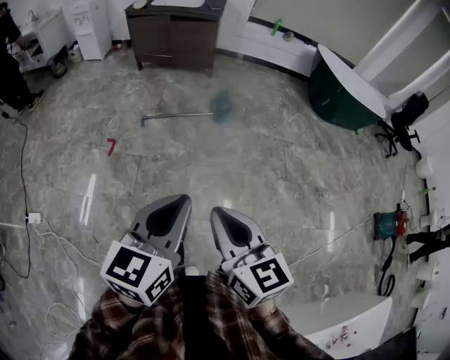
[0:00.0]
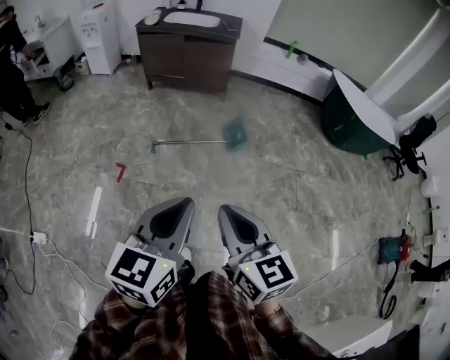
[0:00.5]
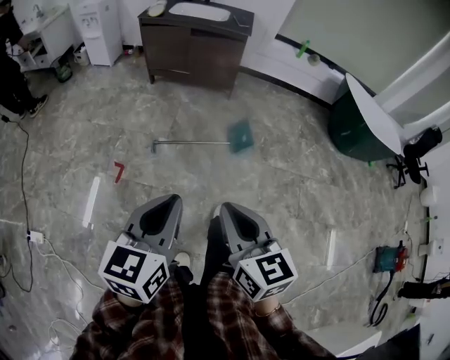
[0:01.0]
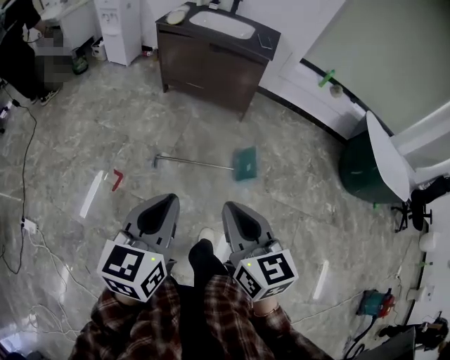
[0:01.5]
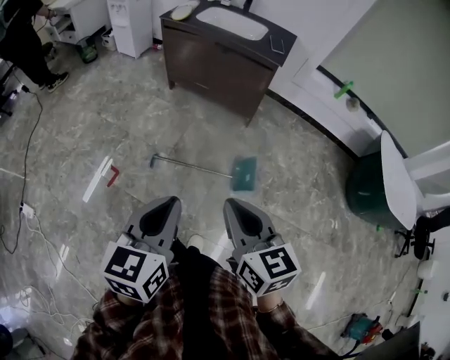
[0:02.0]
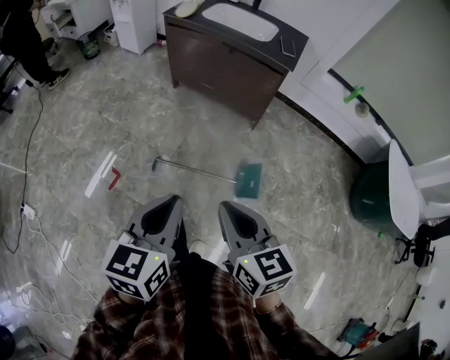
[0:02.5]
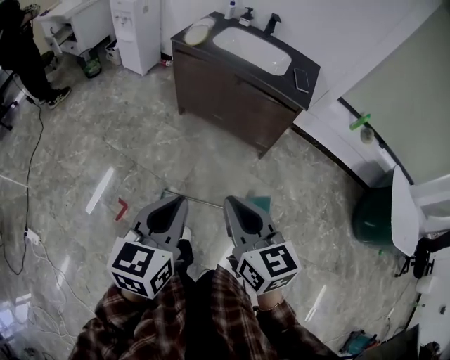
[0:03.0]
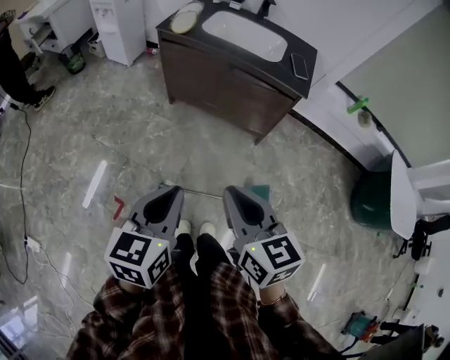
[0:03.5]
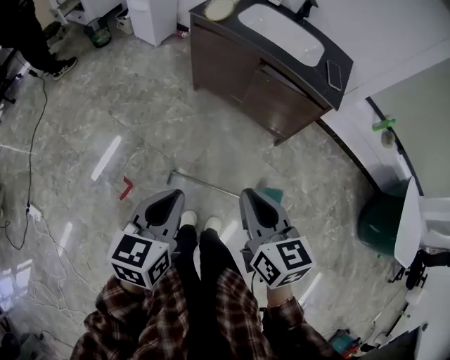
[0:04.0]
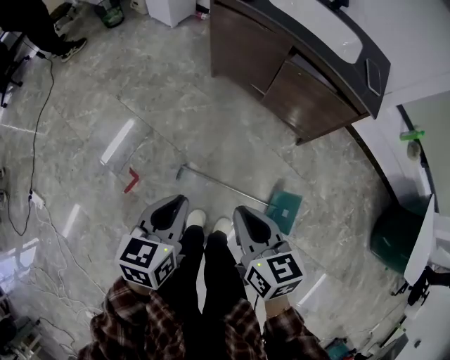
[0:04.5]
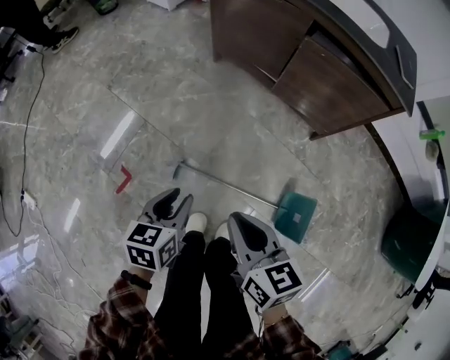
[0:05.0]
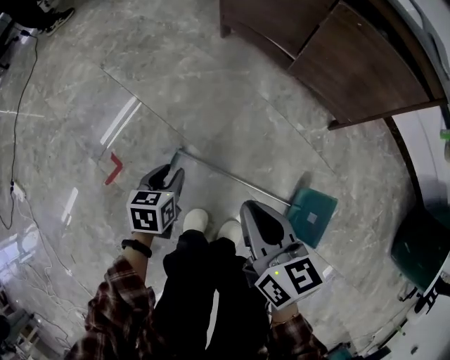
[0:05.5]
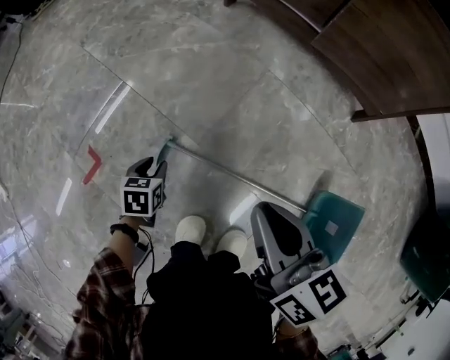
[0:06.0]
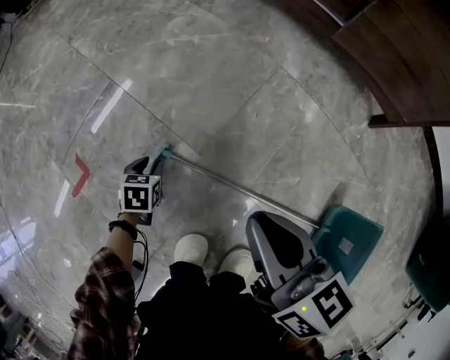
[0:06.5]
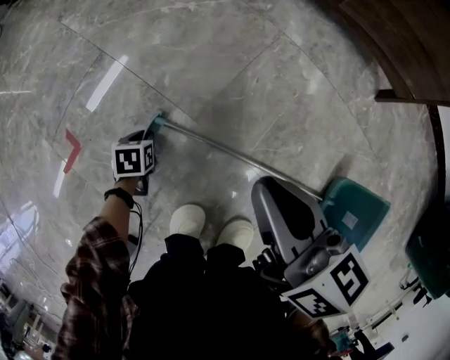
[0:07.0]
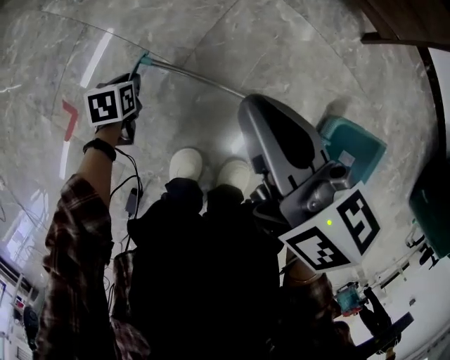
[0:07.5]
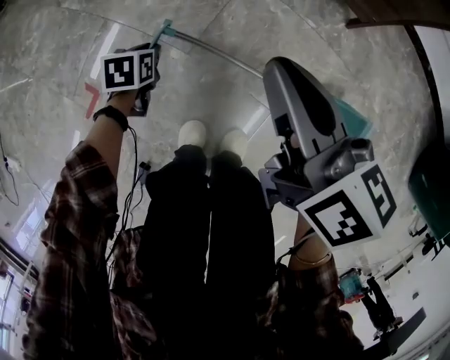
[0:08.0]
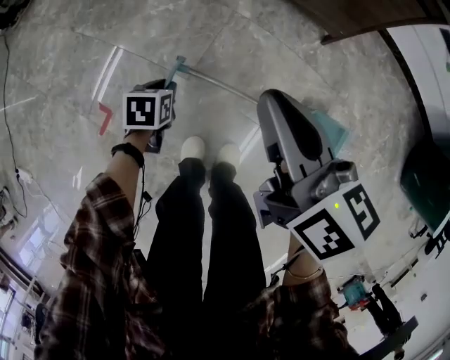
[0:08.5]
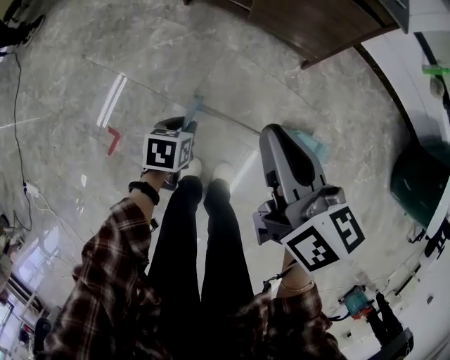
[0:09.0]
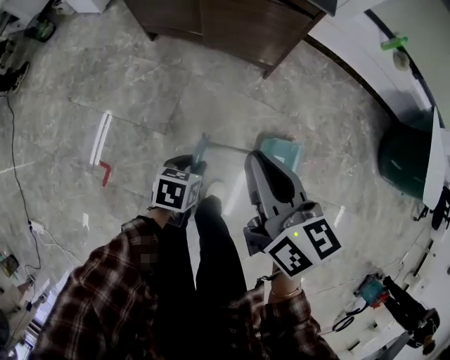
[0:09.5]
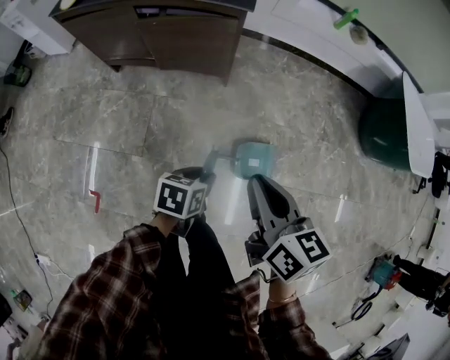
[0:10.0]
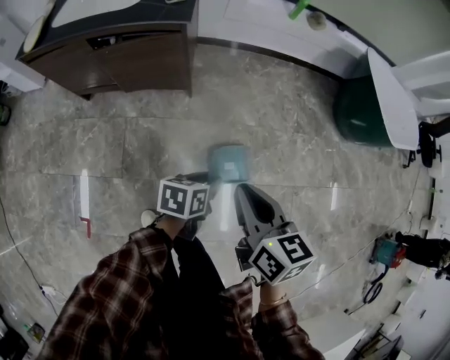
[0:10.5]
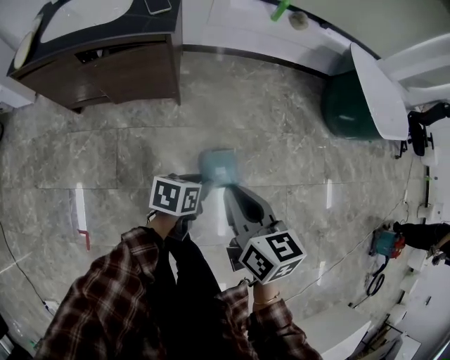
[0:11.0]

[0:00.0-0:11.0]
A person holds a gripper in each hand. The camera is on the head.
0:00.0 to 0:02.0: The pair of grippers is taken forward, roughly 60 cm. The left gripper rotates about 30 degrees.
0:02.0 to 0:03.5: The grippers both shift forward by roughly 30 cm.
0:03.5 to 0:05.5: Both grippers move downward, approximately 50 cm. The right gripper rotates about 20 degrees. The left gripper swivels approximately 30 degrees, and opens up.
0:05.5 to 0:07.5: The right gripper travels downward by about 15 cm, while the left gripper heads downward, covering roughly 30 cm.
0:07.5 to 0:09.0: The left gripper shifts about 40 cm upward and to the right. Meanwhile the right gripper goes some 40 cm upward.
0:09.0 to 0:11.0: The left gripper ends up approximately 50 cm from where it was, and rotates approximately 40 degrees; the right gripper shifts by roughly 35 cm, and turns by some 30 degrees.

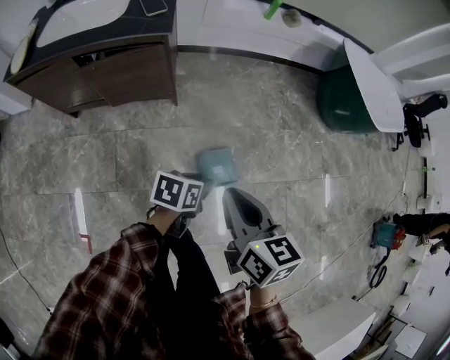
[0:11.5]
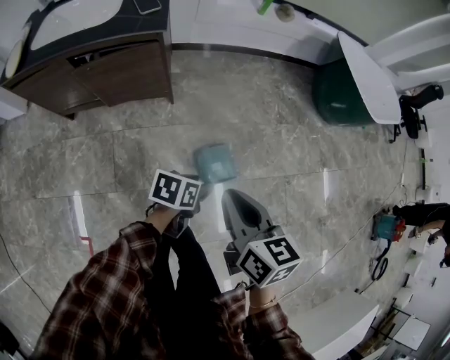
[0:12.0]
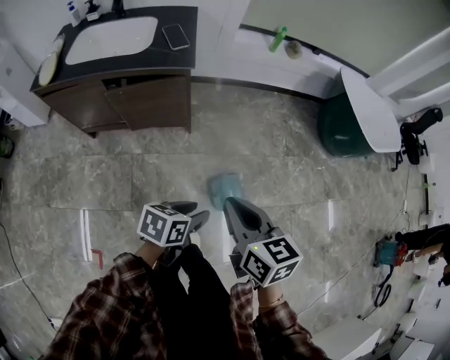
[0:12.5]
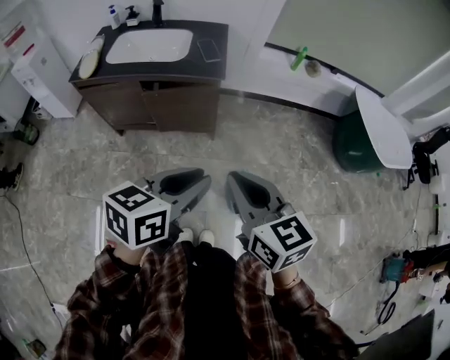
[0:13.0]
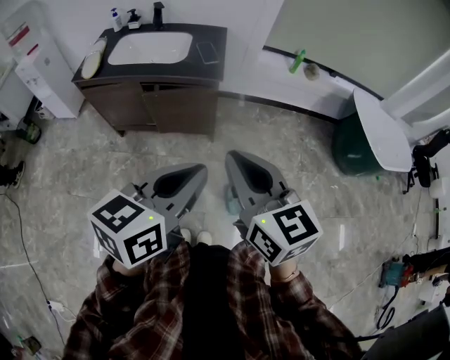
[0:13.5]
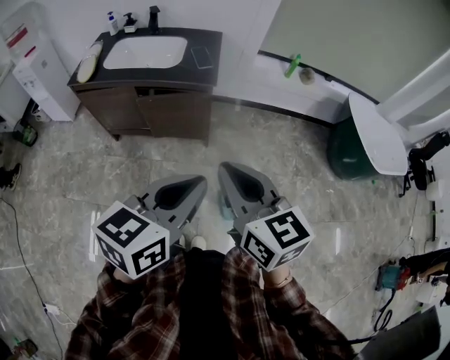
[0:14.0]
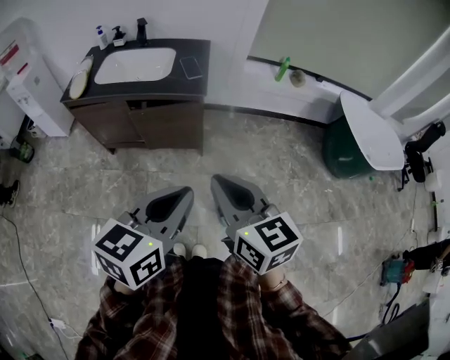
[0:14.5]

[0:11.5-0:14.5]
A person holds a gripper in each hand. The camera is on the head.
0:11.5 to 0:13.0: The right gripper is displaced upward and to the left by some 20 cm, and changes its angle by roughly 30 degrees. Meanwhile the left gripper heads upward and to the left, covering some 35 cm, and changes its angle by about 30 degrees.
0:13.0 to 0:14.5: The left gripper travels upward by approximately 5 cm.

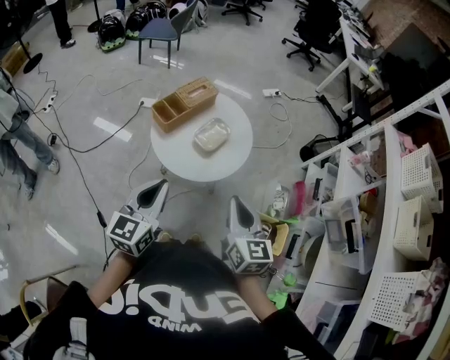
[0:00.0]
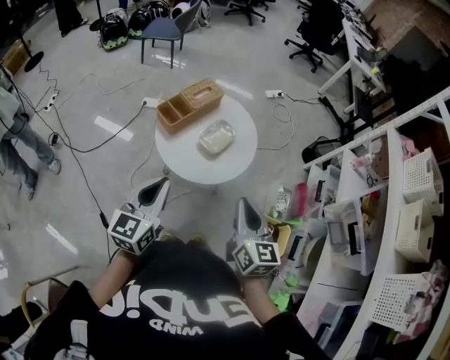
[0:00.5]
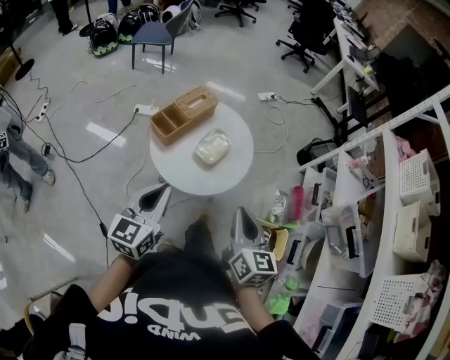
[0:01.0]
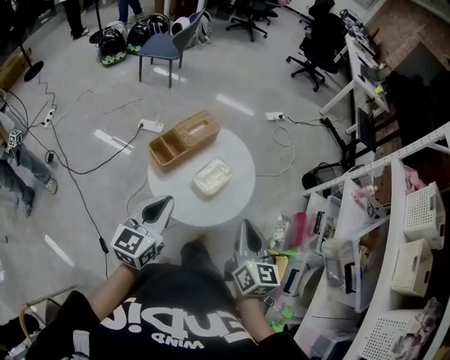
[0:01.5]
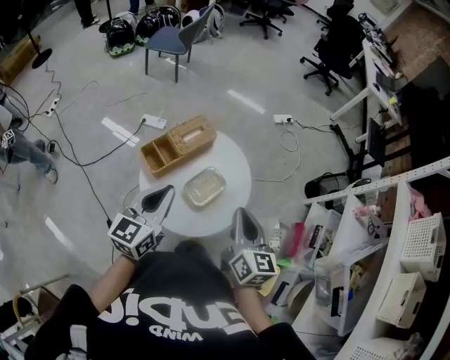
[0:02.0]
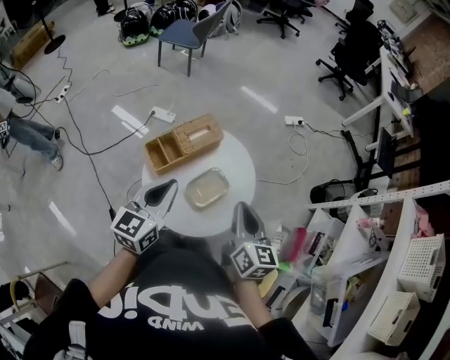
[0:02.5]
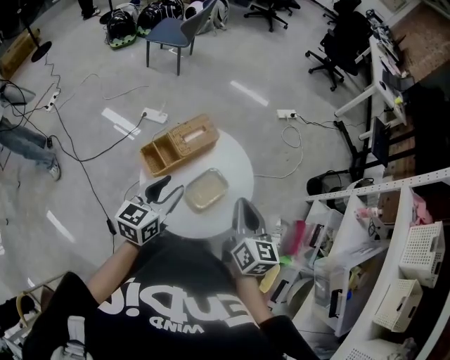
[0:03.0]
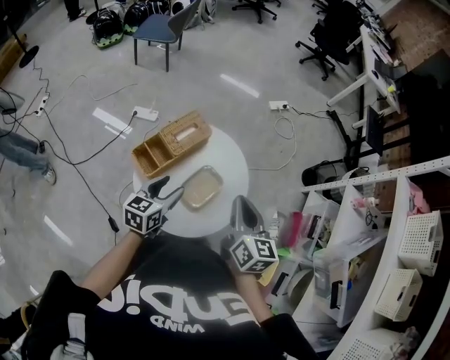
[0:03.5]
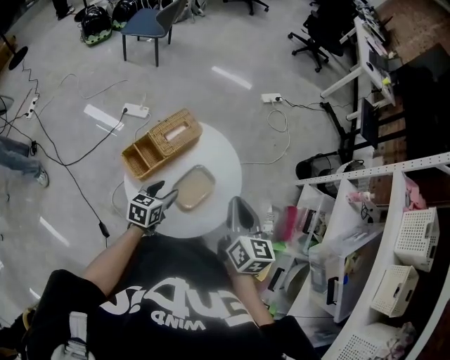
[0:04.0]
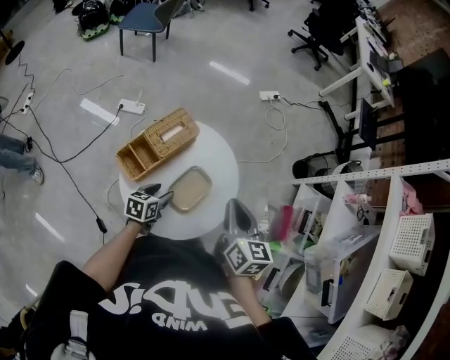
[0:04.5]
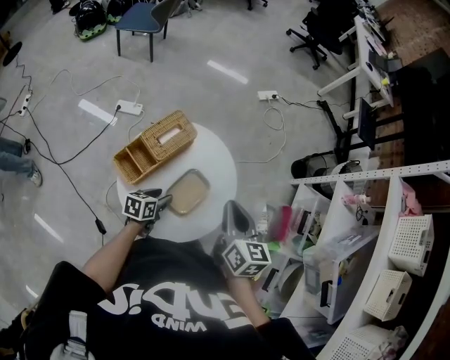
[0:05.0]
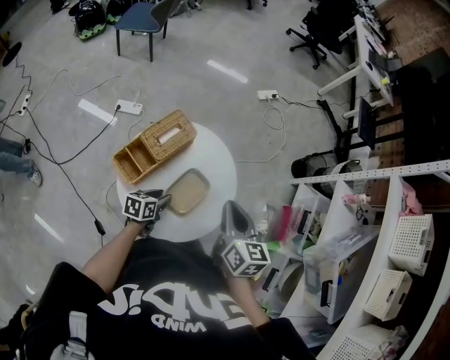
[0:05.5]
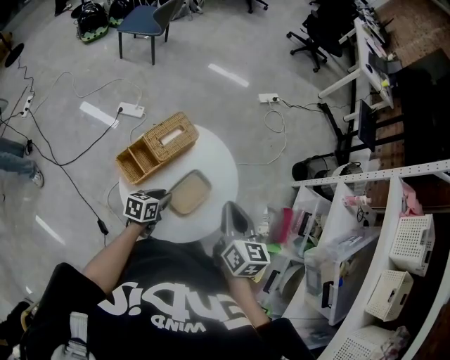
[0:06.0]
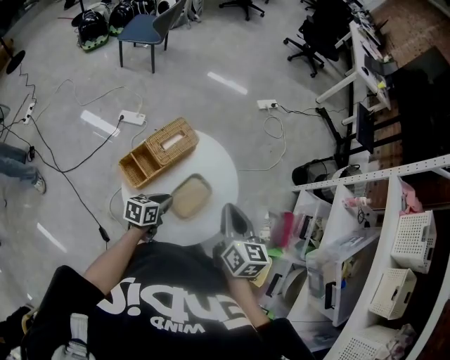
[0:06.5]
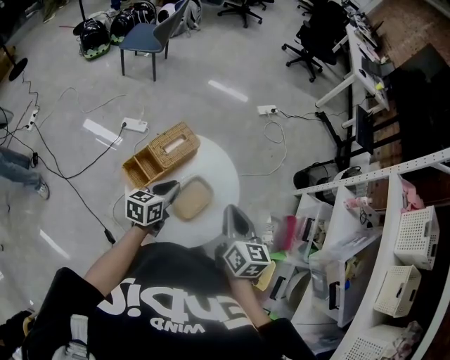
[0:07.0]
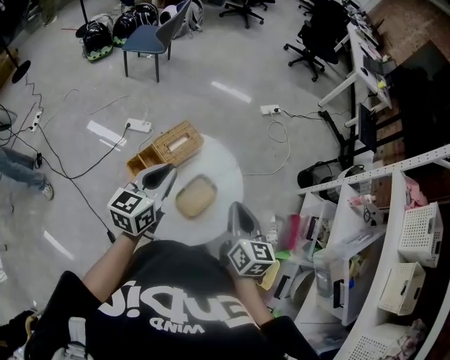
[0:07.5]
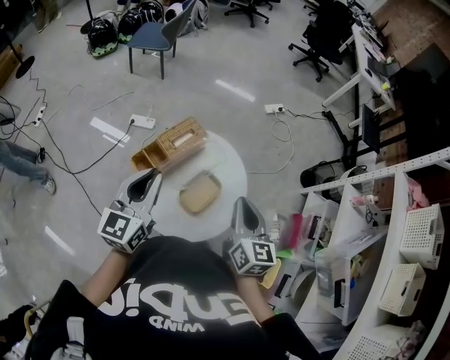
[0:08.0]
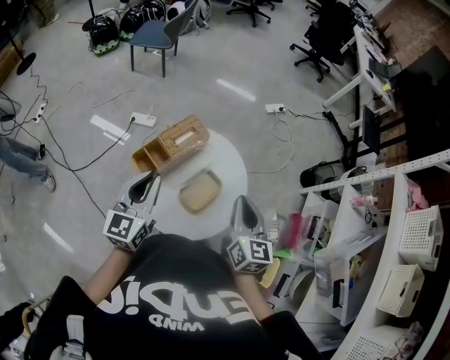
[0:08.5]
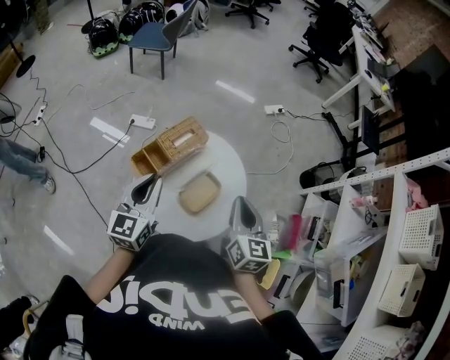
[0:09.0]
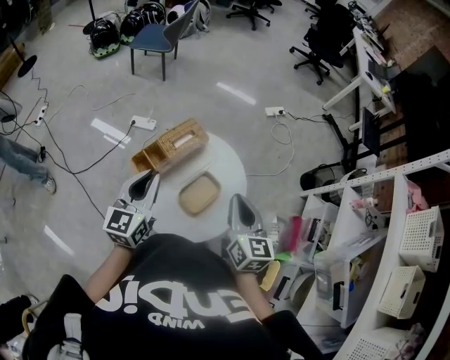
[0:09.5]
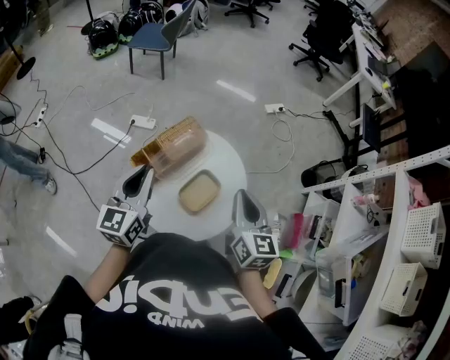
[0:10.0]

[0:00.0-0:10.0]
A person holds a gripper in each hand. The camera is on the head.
0:00.0 to 0:02.0: Both grippers move forward, roughly 25 cm.
0:02.0 to 0:04.0: The right gripper goes approximately 5 cm forward. Meanwhile the left gripper goes some 25 cm downward, turns by some 30 degrees, and opens its fingers.
0:04.0 to 0:06.0: The left gripper closes its fingers.
0:06.0 to 0:08.0: The left gripper goes some 30 cm upward, and angles its fingers upward, by about 30 degrees. Meanwhile the right gripper shifts by roughly 5 cm.
0:08.0 to 0:10.0: The grippers move only a little.

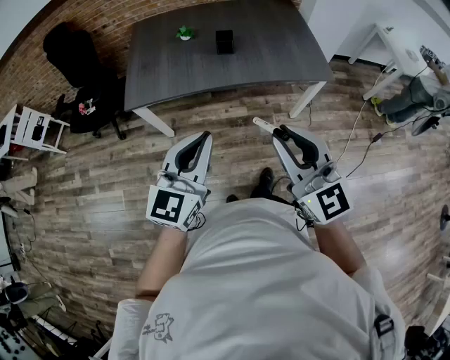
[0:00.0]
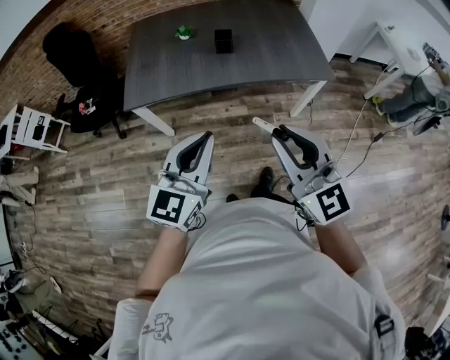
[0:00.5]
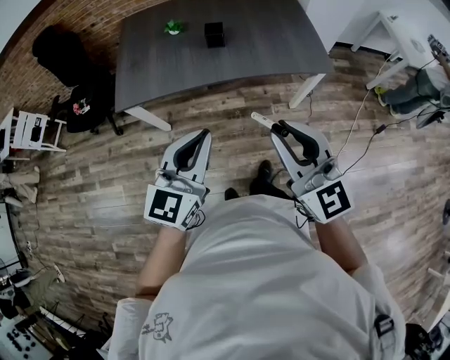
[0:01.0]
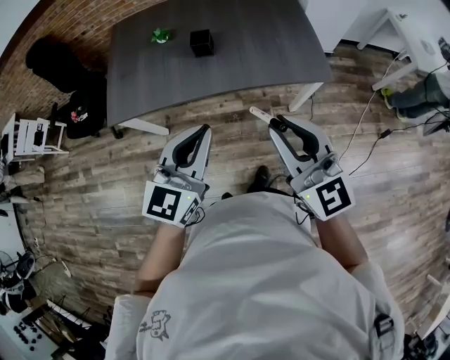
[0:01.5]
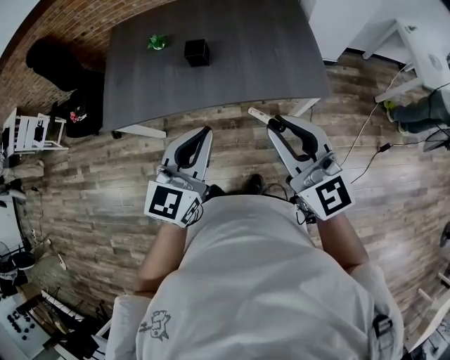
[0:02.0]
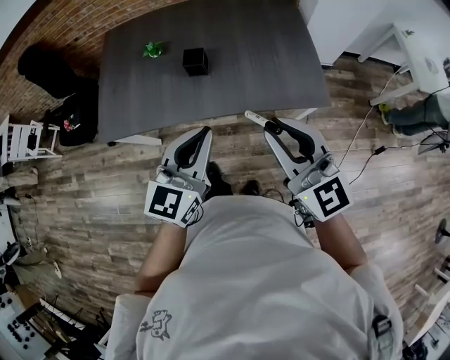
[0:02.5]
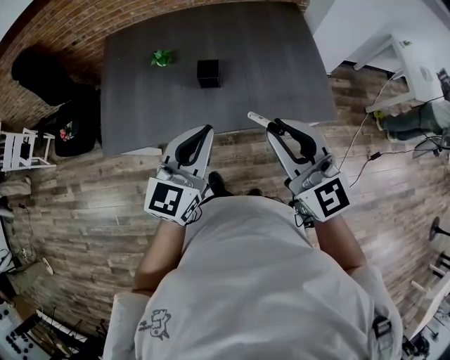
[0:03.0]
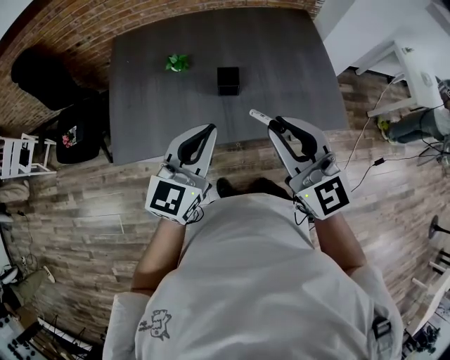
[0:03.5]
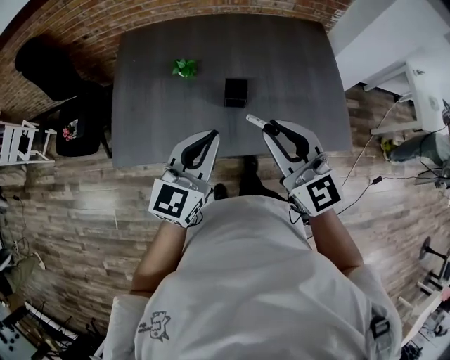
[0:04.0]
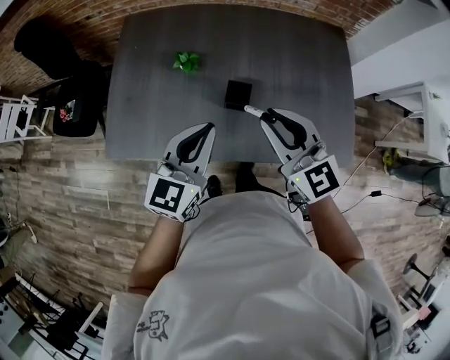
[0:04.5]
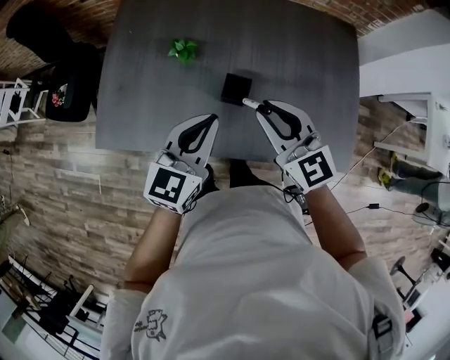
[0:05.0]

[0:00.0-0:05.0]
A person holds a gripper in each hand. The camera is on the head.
0:00.0 to 0:02.5: Both grippers move forward and to the right, approximately 30 cm.
0:02.5 to 0:05.0: The right gripper shifts some 35 cm forward and to the left. The left gripper heads forward, covering some 25 cm.
